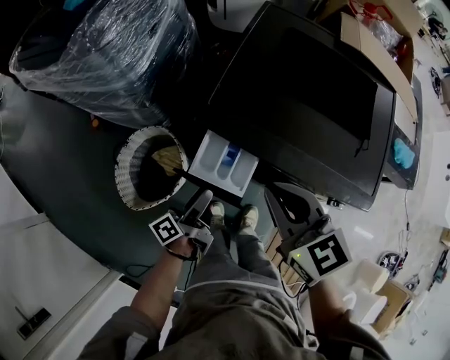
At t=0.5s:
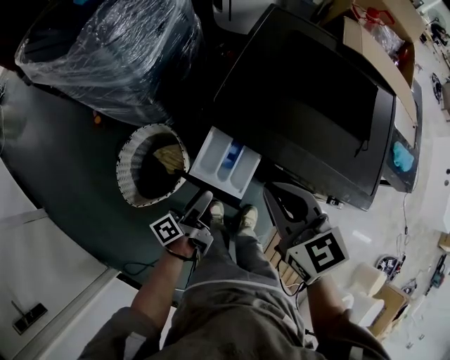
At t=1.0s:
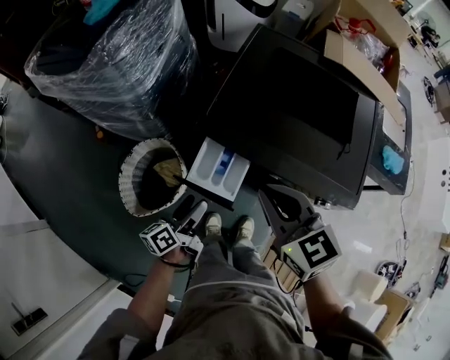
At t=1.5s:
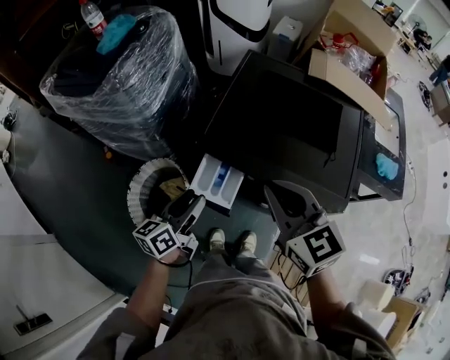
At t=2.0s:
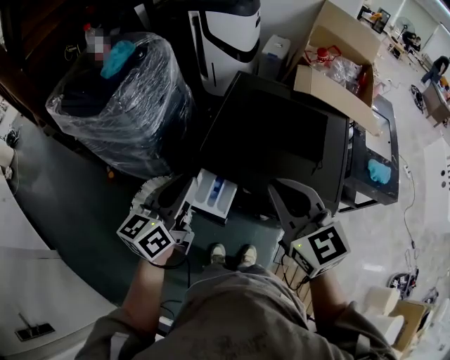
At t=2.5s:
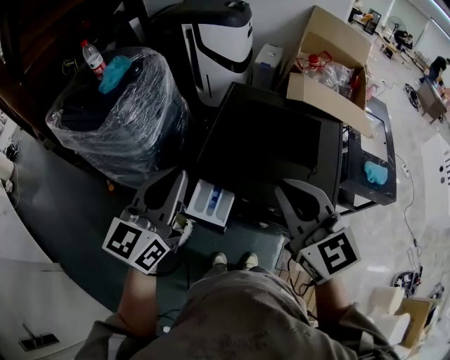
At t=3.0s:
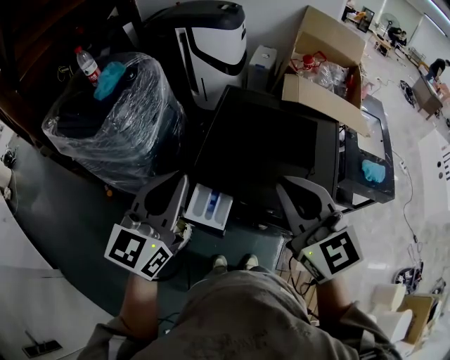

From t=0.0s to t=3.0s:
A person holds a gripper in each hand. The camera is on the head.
From t=0.0s to t=1.5s: The two grippers go roughly 15 cm upward. The left gripper rotates around the line of its fingers by some 40 degrees, clockwise from behind, and closes up.
From t=1.5s to t=3.0s: The left gripper shifts roughly 25 cm upward, twists roughly 40 degrees clockwise, seen from behind, and closes up; the right gripper moves upward, roughly 15 cm.

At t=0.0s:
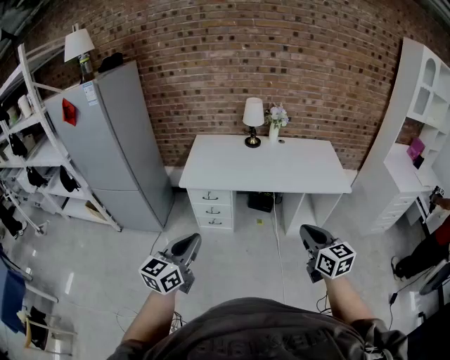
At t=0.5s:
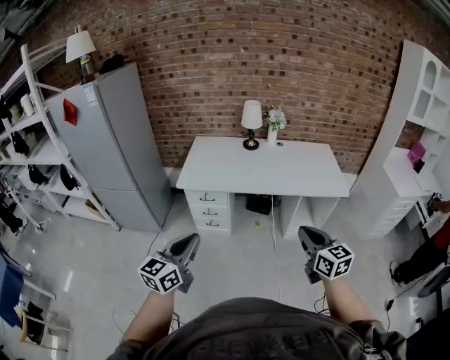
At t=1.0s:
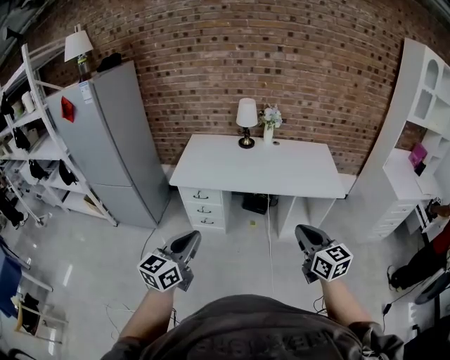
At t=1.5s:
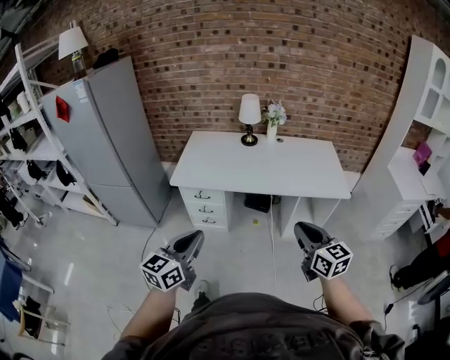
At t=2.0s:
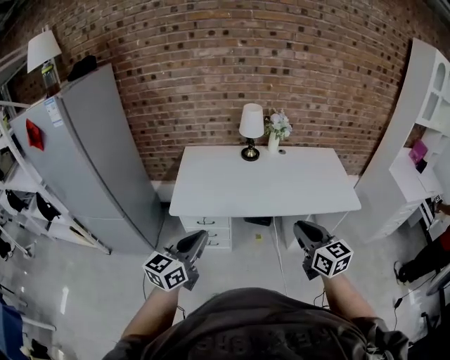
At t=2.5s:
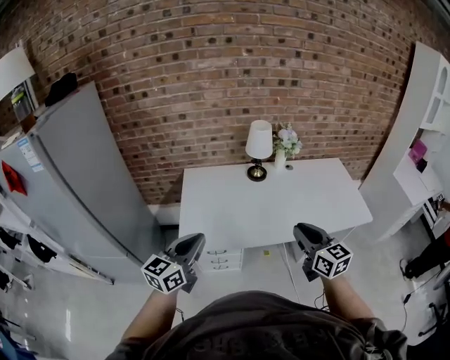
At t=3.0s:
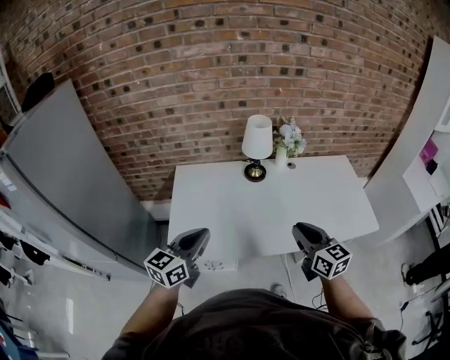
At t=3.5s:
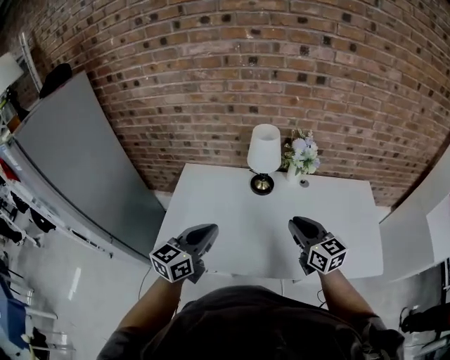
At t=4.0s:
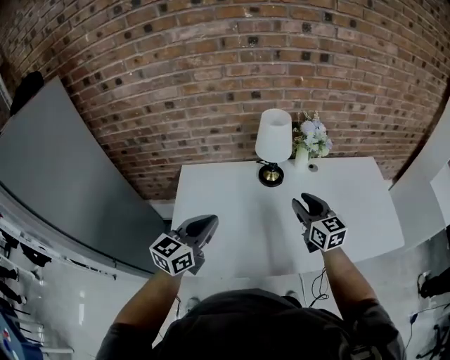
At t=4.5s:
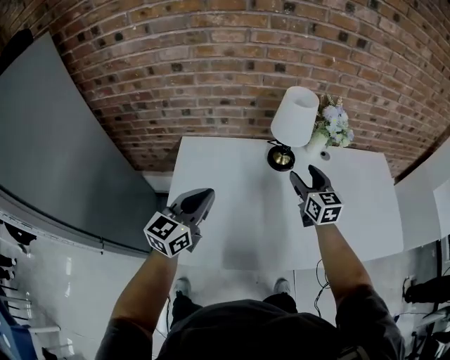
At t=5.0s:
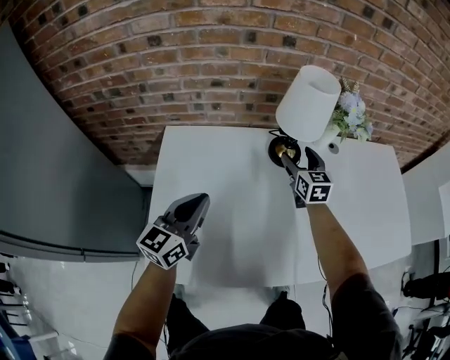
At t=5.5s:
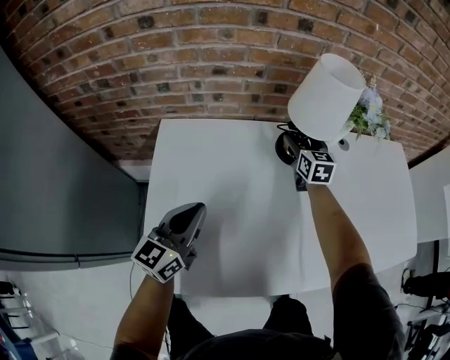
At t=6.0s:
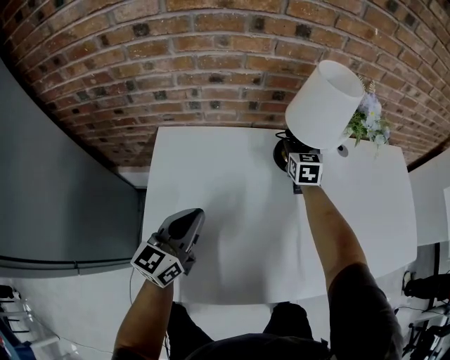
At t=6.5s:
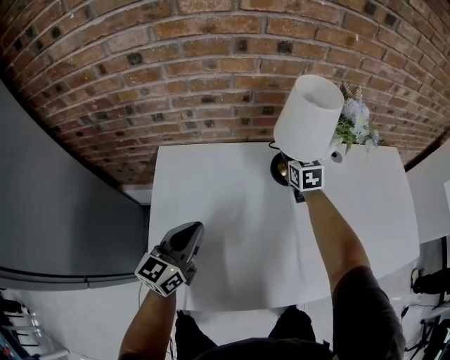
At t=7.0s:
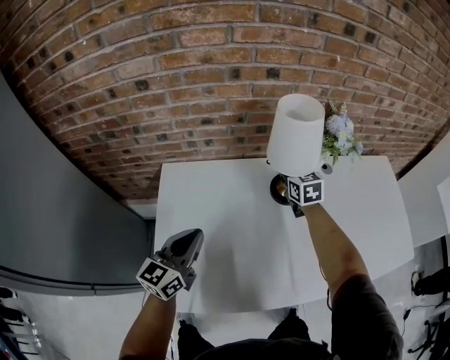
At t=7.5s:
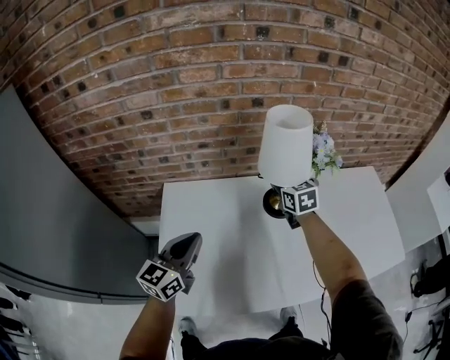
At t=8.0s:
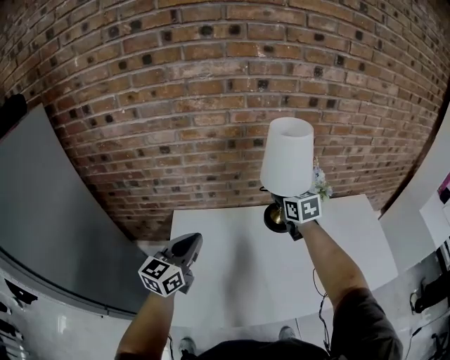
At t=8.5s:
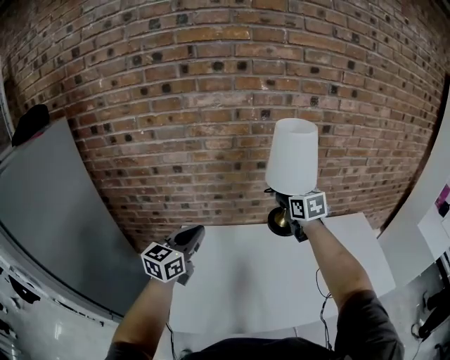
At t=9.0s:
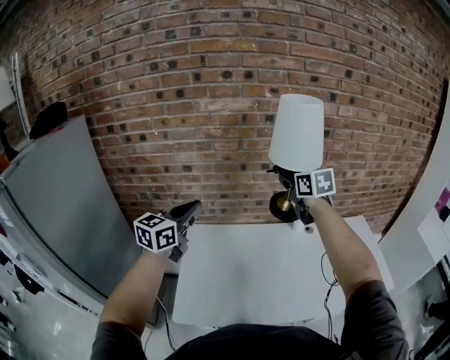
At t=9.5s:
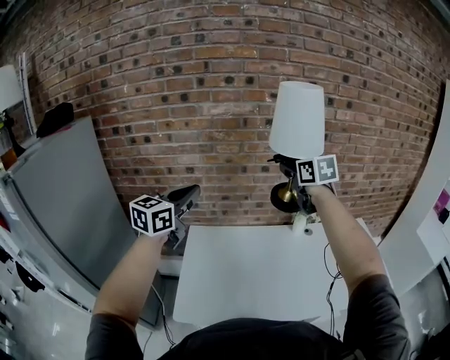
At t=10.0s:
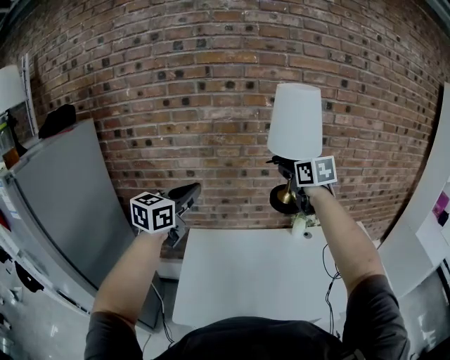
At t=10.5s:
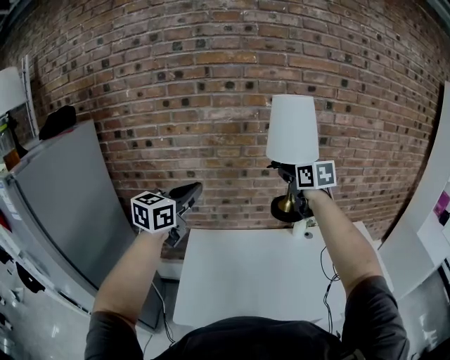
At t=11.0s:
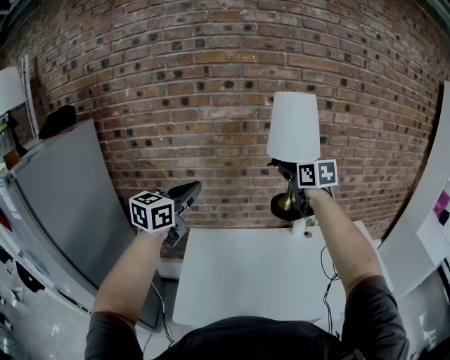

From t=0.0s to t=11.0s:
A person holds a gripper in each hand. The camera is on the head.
From t=0.0s to t=2.0s: The grippers both shift forward by about 25 cm.
From t=2.0s to t=3.5s: Both grippers move forward, about 40 cm.
From t=3.5s to t=5.5s: The left gripper moves downward, to the left and forward, roughly 35 cm. The right gripper heads forward, downward and to the left, covering approximately 50 cm, swivels approximately 30 degrees, and opens its fingers.
From t=5.5s to t=7.5s: The left gripper shifts about 10 cm upward. The right gripper moves upward and backward, roughly 15 cm, and closes up.
From t=7.5s to t=9.0s: Both grippers travel together upward, about 30 cm.
From t=9.0s to t=11.0s: The two grippers go about 5 cm upward.

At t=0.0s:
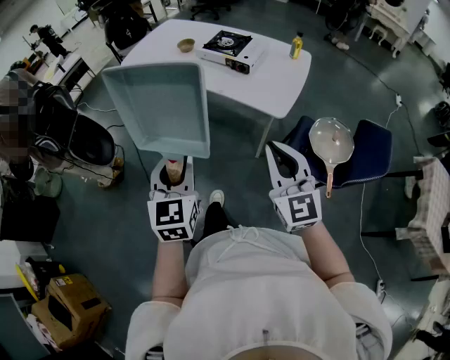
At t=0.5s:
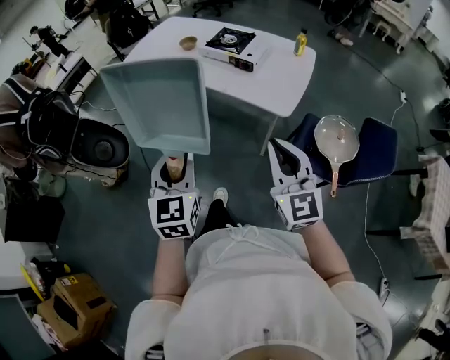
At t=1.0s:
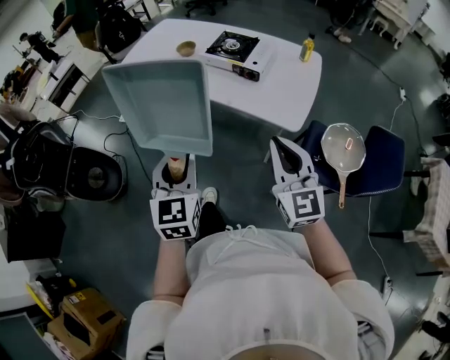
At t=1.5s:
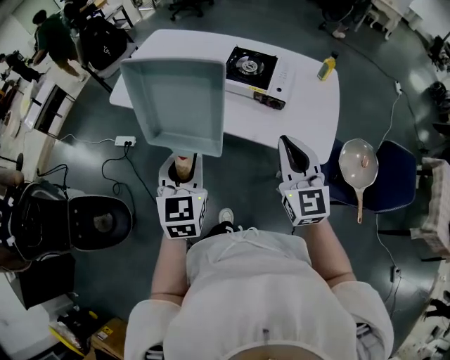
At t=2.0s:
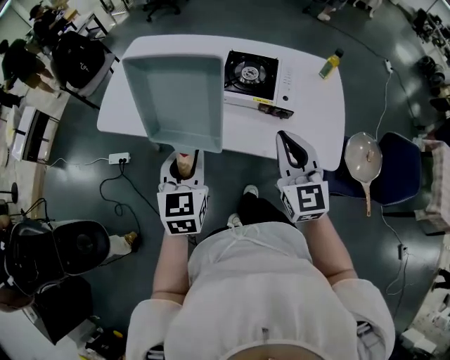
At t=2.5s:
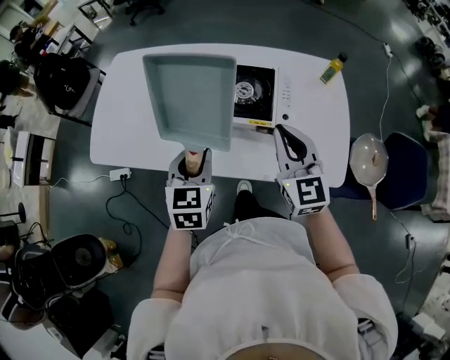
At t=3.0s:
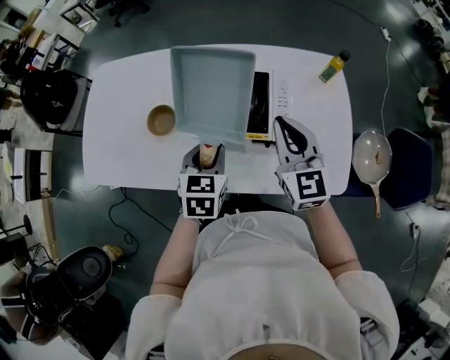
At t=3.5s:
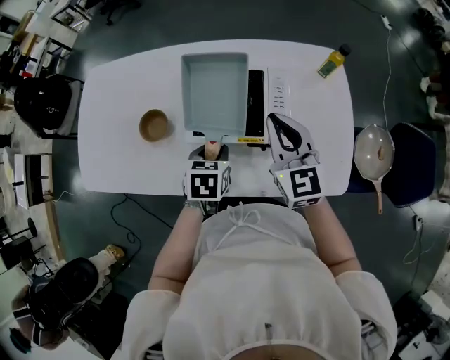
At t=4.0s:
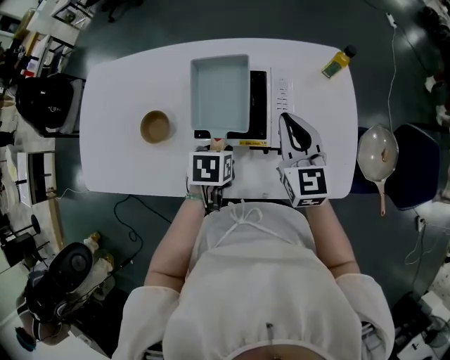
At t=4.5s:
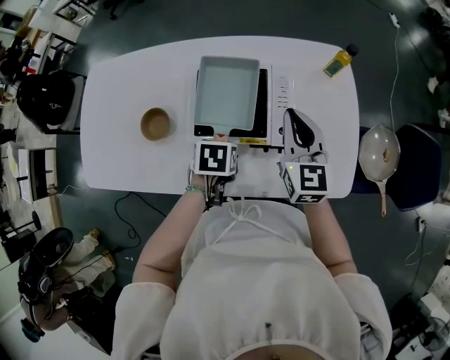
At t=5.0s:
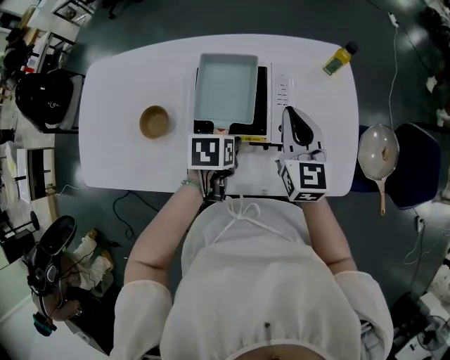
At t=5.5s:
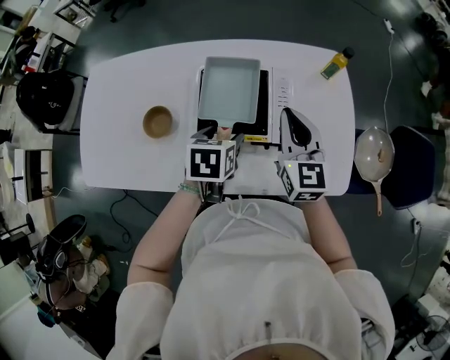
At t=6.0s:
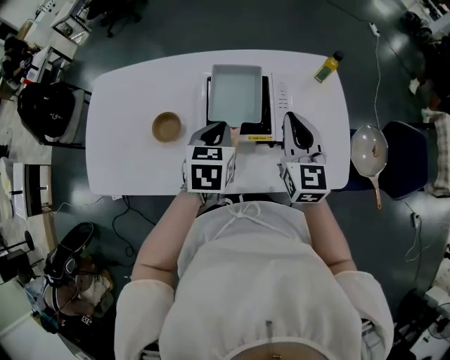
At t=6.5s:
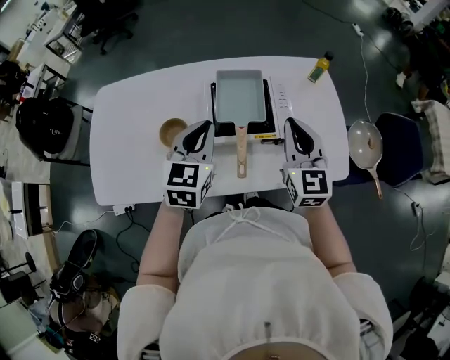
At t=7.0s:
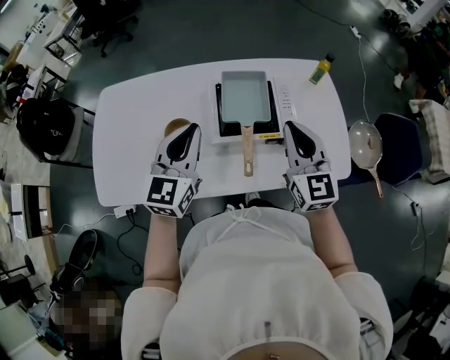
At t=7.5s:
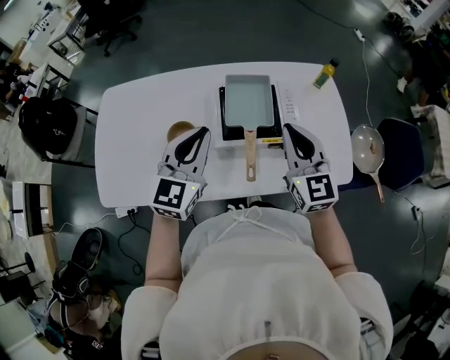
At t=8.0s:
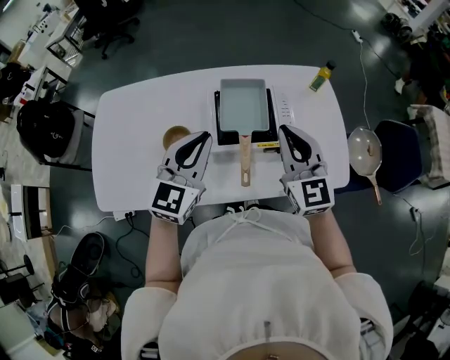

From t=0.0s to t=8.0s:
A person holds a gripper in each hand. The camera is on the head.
From t=0.0s to t=2.0s: The two grippers travel together, forward, about 50 cm. The left gripper changes its angle by some 20 degrees. Meanwhile the right gripper changes its angle by approximately 20 degrees.
From t=2.0s to t=4.0s: The right gripper changes place by some 30 cm. The left gripper changes place by roughly 35 cm, and tilts its fingers about 40 degrees downward.
From t=4.0s to t=6.0s: The right gripper is displaced upward by some 5 cm. The left gripper shifts roughly 15 cm upward, turns by approximately 30 degrees, and opens, then closes again.
From t=6.0s to t=8.0s: The right gripper travels to the left and upward by approximately 10 cm. The left gripper moves upward and to the left, about 15 cm, and tilts its fingers approximately 30 degrees upward.

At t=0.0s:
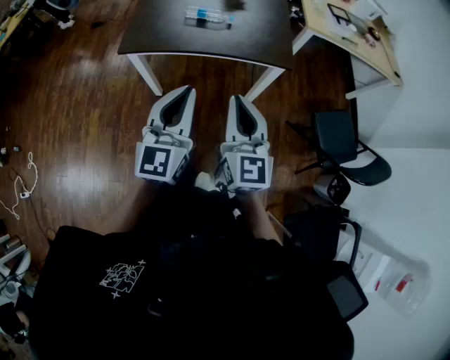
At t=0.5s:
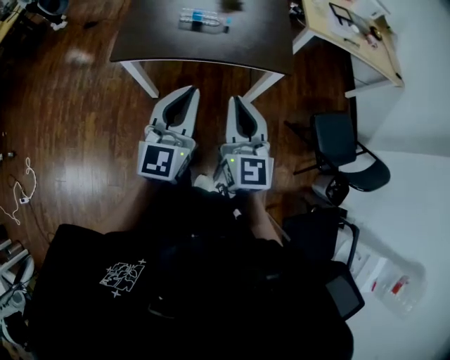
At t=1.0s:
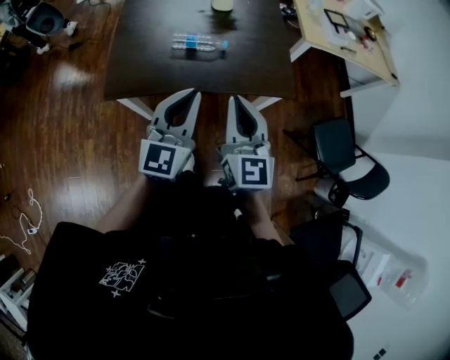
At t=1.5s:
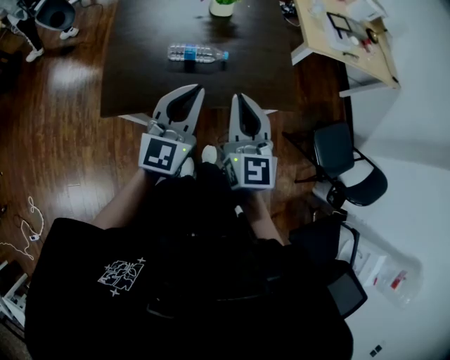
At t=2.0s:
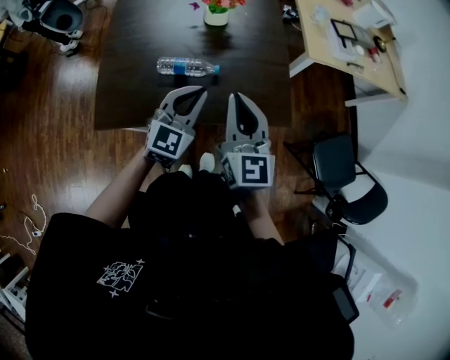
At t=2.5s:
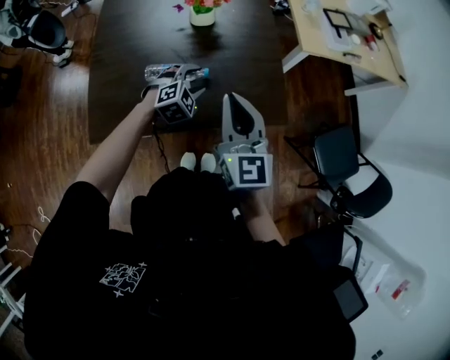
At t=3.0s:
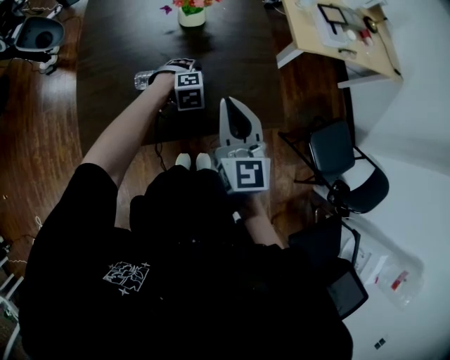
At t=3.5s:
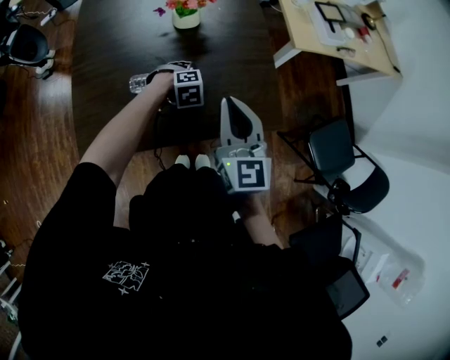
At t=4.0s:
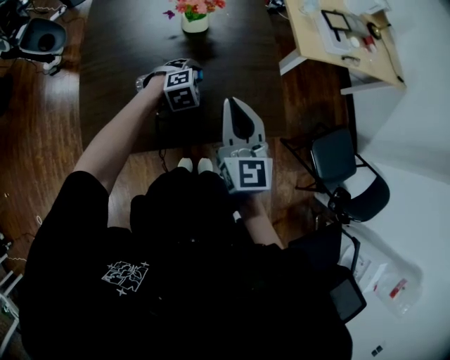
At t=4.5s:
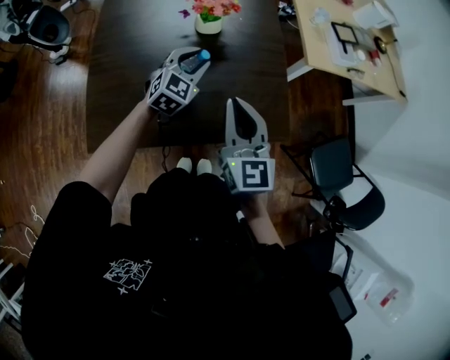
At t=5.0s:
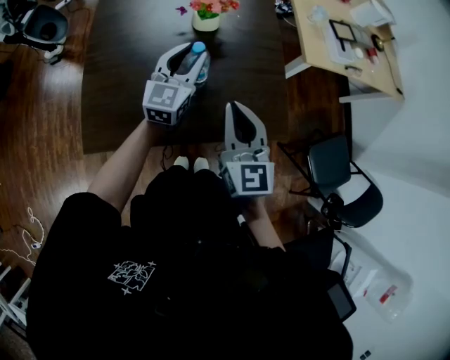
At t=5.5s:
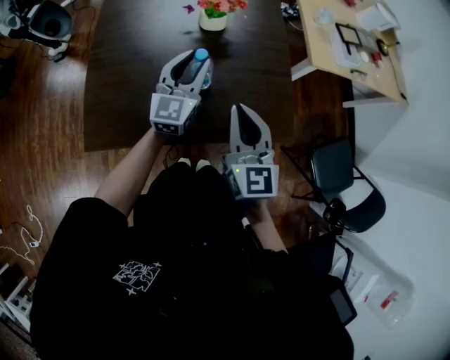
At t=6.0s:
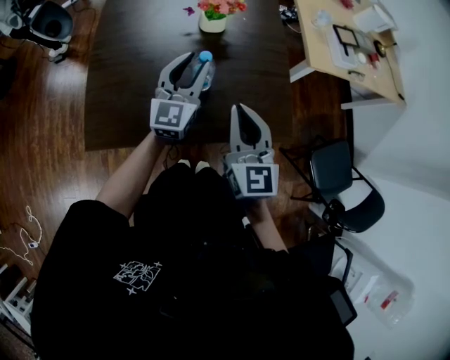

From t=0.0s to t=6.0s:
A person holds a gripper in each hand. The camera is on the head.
From t=0.0s to t=2.0s: Both grippers travel together forward, some 35 cm. The left gripper turns by about 30 degrees.
From t=2.0s to t=4.0s: The left gripper goes roughly 25 cm downward and forward, tips its fingers downward by about 50 degrees, and opens its fingers, while the right gripper is displaced forward by about 5 cm.
From t=4.0s to t=6.0s: The left gripper is displaced upward and to the left by approximately 20 cm, and tilts its fingers about 60 degrees upward.
